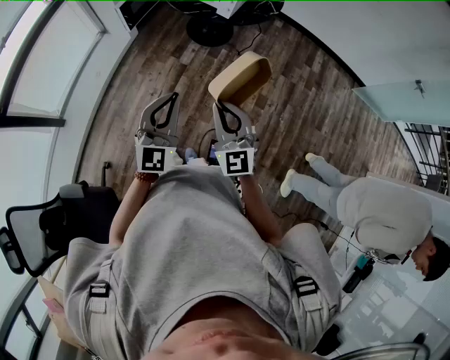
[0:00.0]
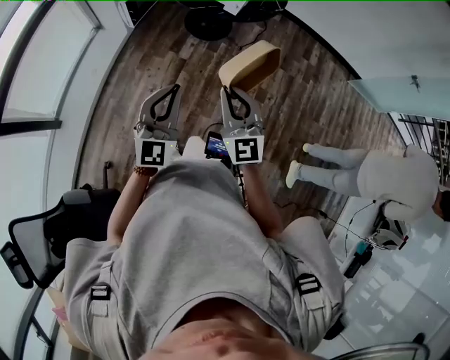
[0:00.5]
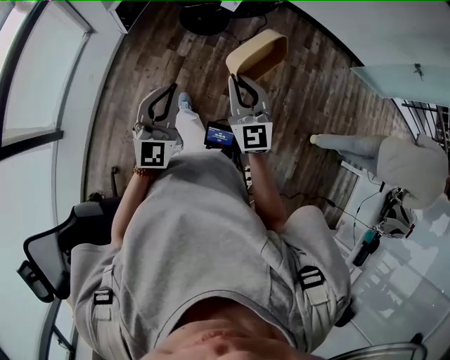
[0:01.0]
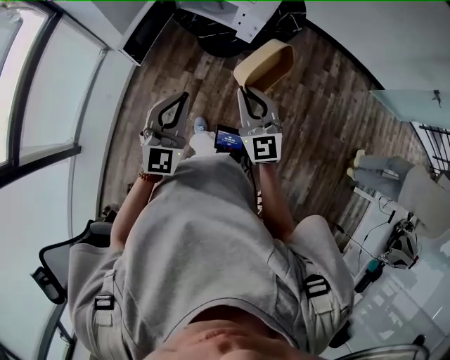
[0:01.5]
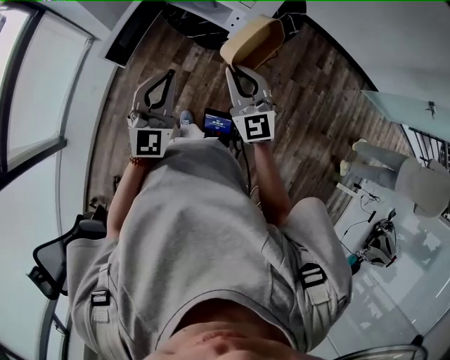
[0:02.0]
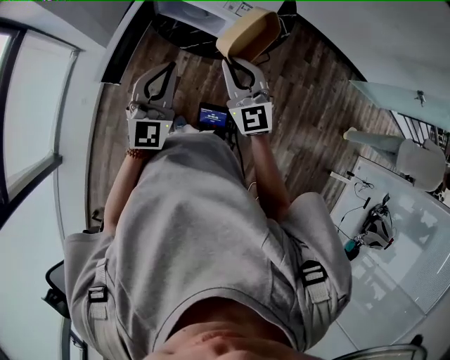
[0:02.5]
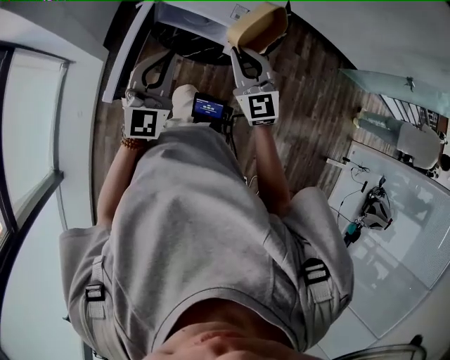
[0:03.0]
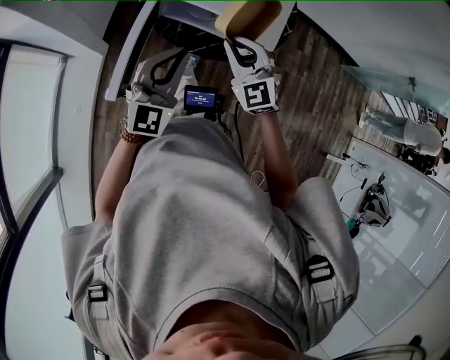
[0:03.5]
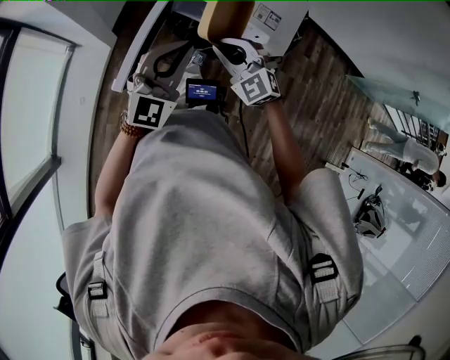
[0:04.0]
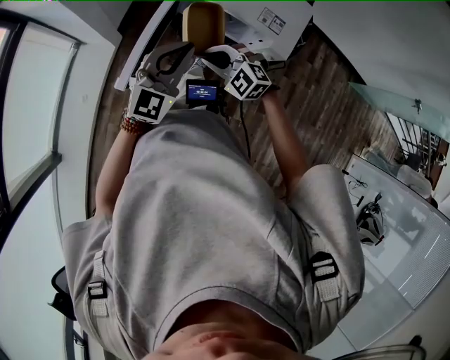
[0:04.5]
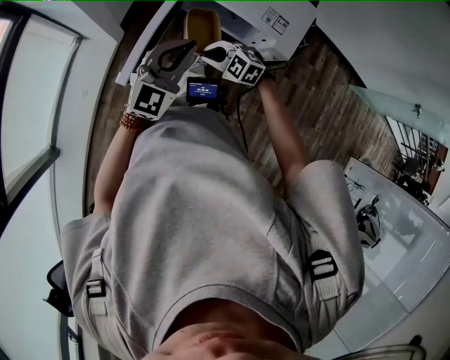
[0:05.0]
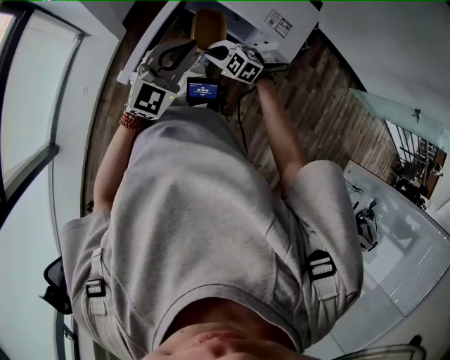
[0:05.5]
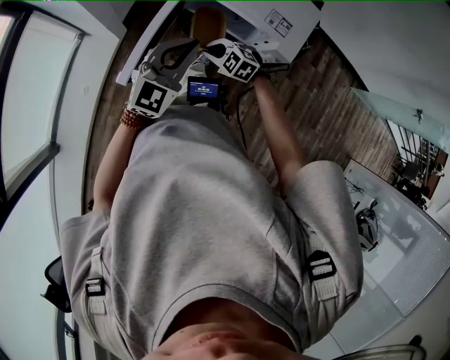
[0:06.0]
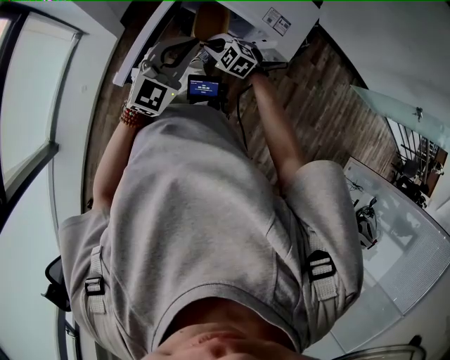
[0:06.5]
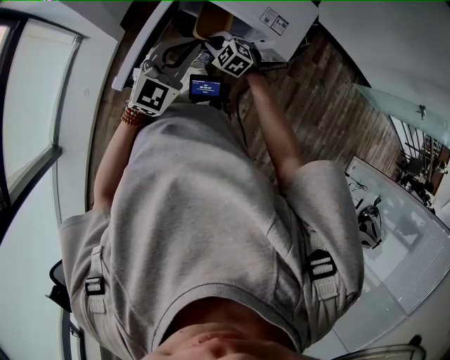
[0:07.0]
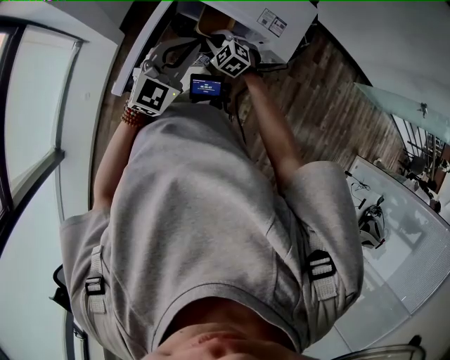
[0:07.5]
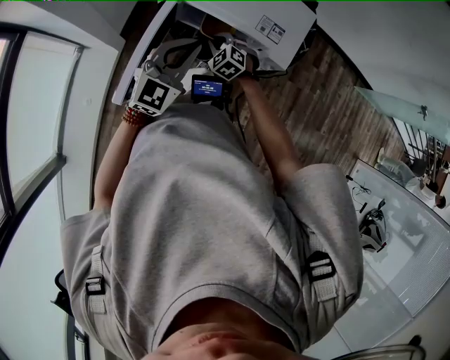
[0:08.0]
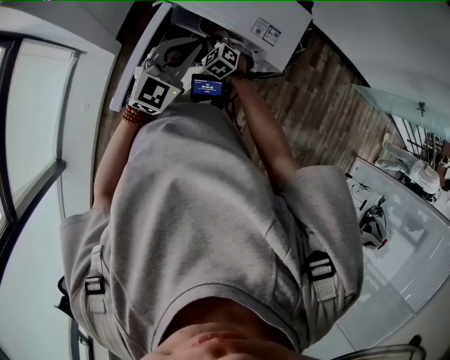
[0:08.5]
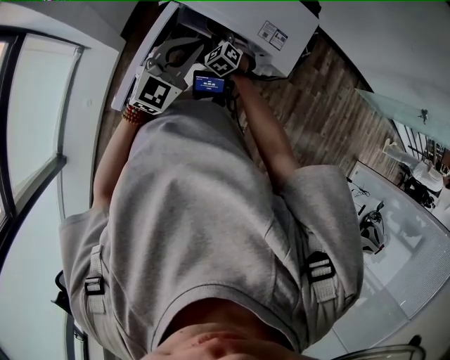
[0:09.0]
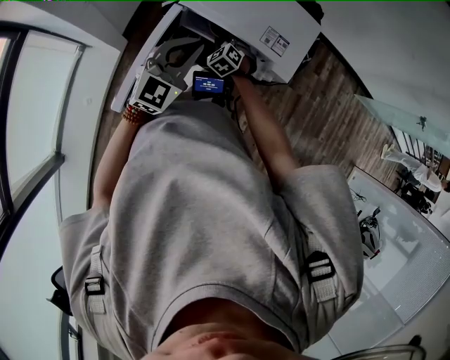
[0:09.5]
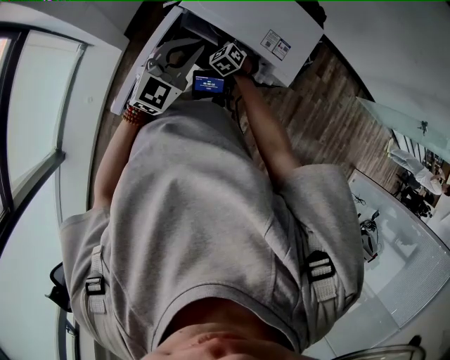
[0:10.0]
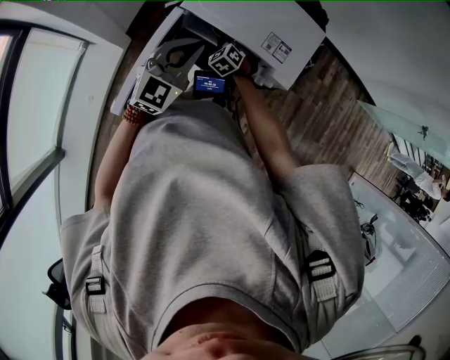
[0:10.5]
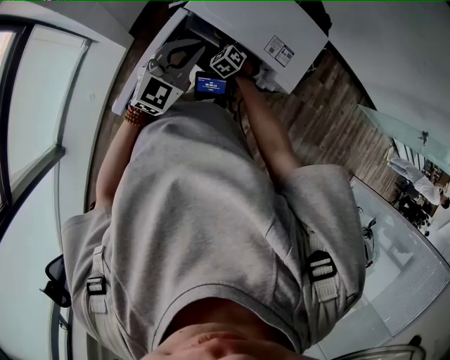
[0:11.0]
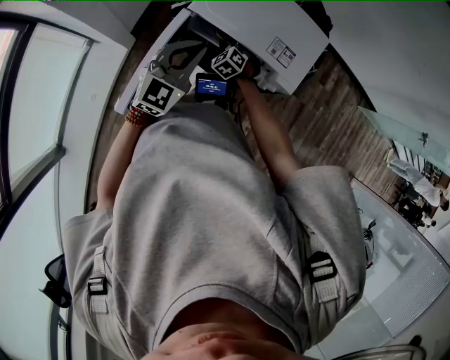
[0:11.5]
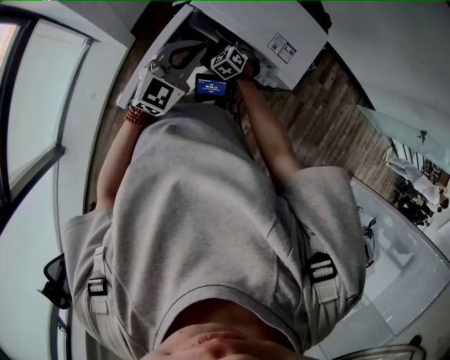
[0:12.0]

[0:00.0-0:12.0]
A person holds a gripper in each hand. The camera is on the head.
0.0 to 2.0 s: The grippers both shift forward by approximately 40 cm.
2.0 to 4.0 s: The left gripper is displaced forward and to the left by some 20 cm, while the right gripper heads forward, to the left and downward, covering approximately 25 cm, and swivels approximately 30 degrees.
4.0 to 6.0 s: The left gripper ends up about 5 cm from where it was. The right gripper shifts roughly 15 cm downward, and turns by about 30 degrees.
6.0 to 8.0 s: The right gripper shifts approximately 10 cm forward, and turns by approximately 30 degrees; the left gripper shifts by approximately 5 cm.
8.0 to 10.0 s: The right gripper is displaced forward and downward by about 10 cm.
10.0 to 12.0 s: The grippers make only small movements.

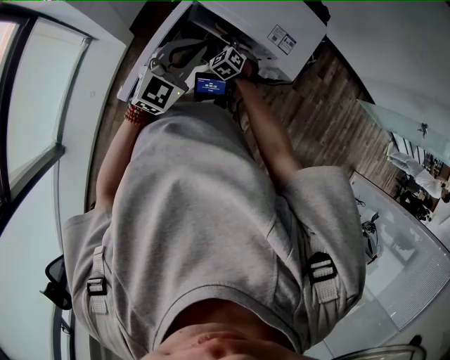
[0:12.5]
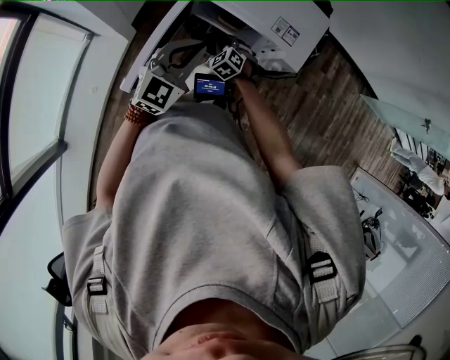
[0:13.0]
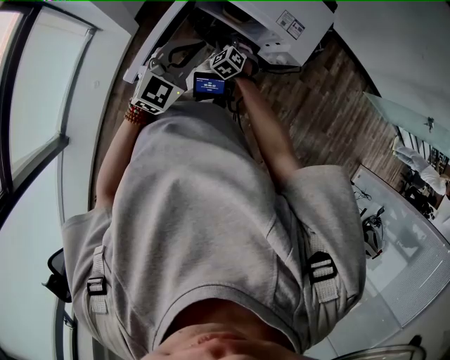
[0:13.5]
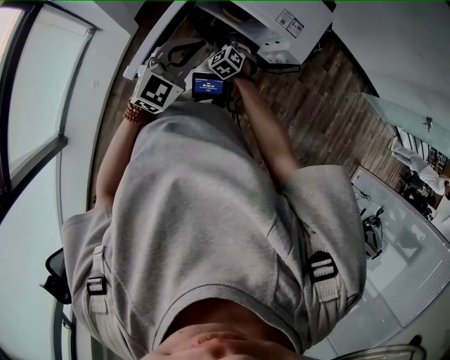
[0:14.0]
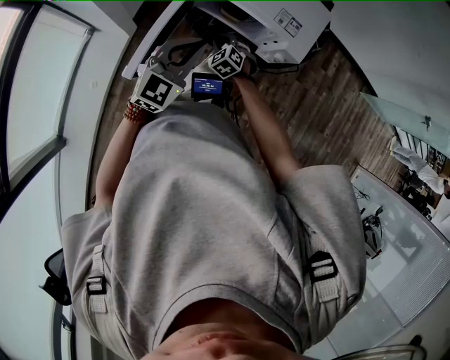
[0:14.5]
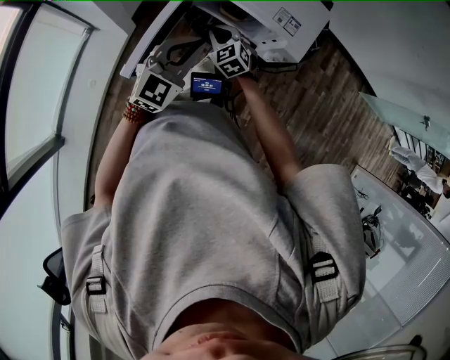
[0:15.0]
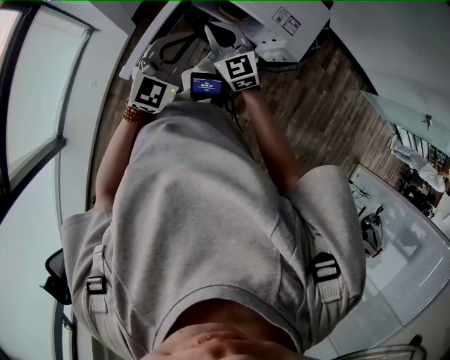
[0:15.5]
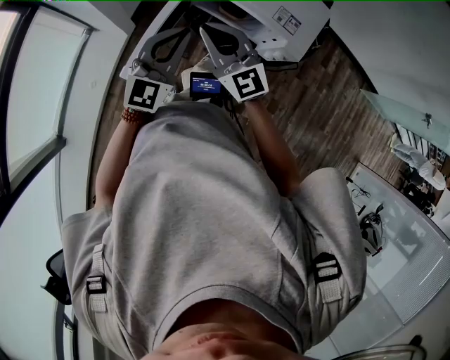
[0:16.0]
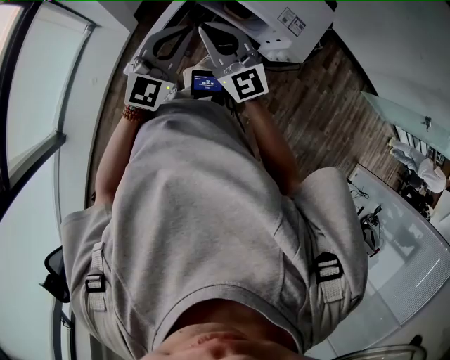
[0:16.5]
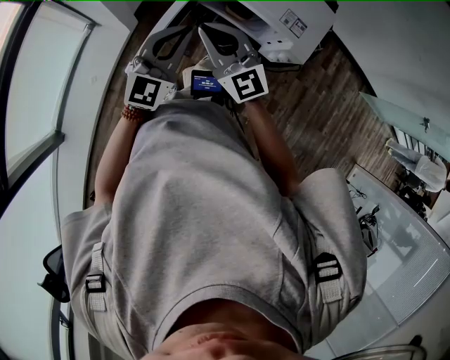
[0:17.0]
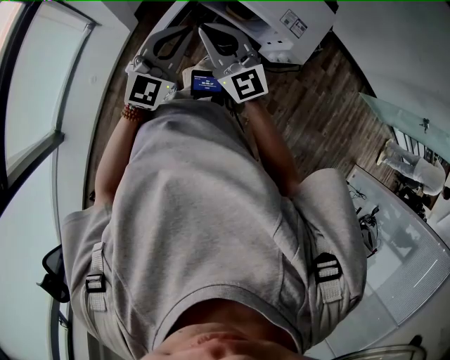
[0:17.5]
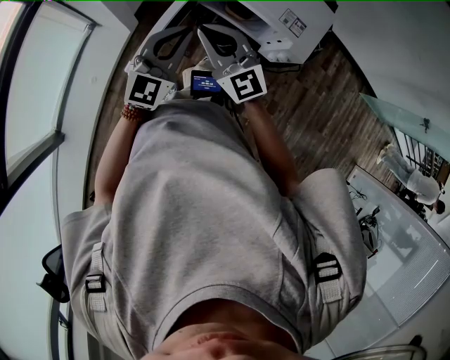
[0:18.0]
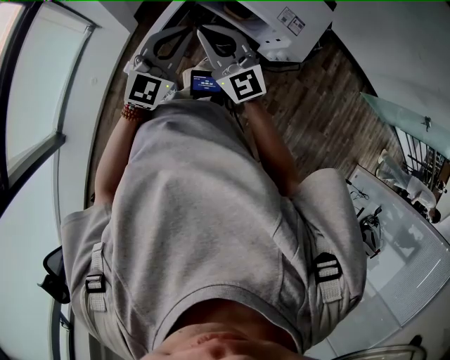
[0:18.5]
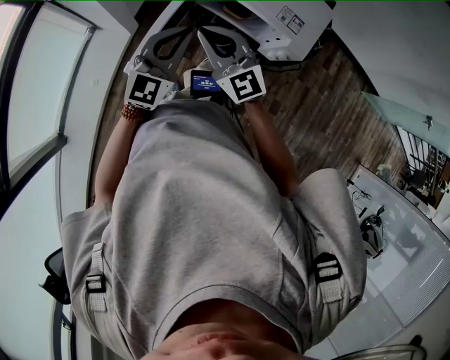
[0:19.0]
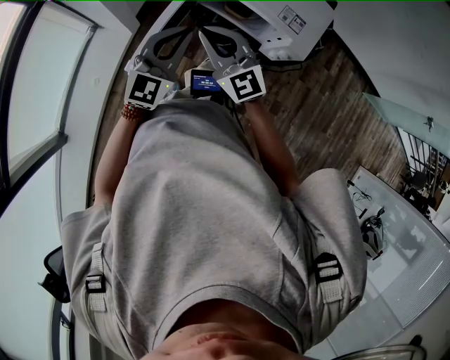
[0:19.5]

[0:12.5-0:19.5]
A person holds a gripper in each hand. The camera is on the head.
12.5 to 14.5 s: The grippers both shift backward by approximately 5 cm.
14.5 to 16.0 s: The right gripper heads upward, covering approximately 30 cm, and tilts its fingers some 40 degrees upward; the left gripper ends up some 5 cm from where it was.
16.0 to 19.5 s: The grippers stay close to where they were, moving slightly.

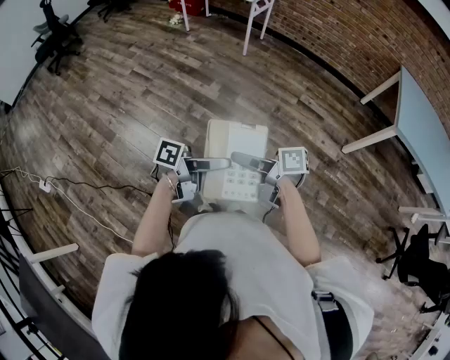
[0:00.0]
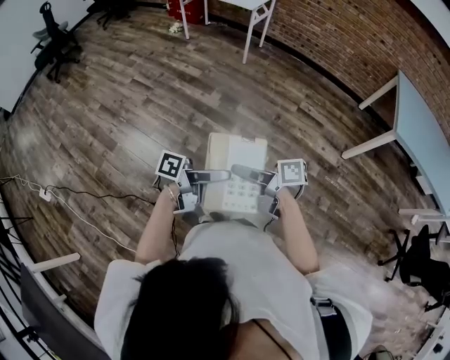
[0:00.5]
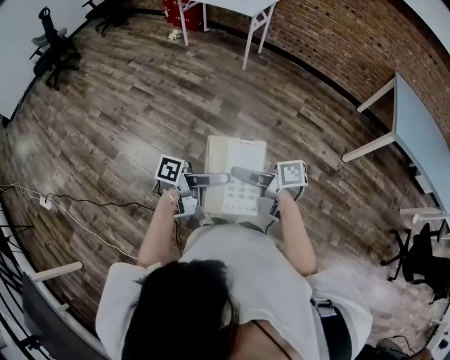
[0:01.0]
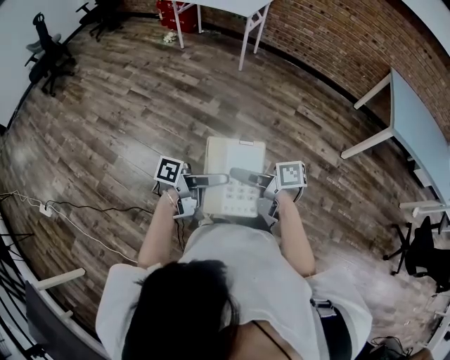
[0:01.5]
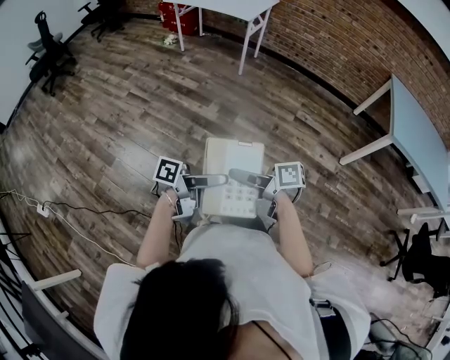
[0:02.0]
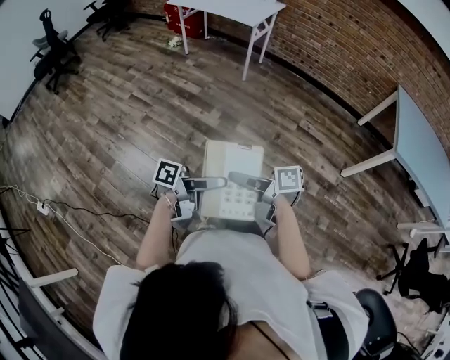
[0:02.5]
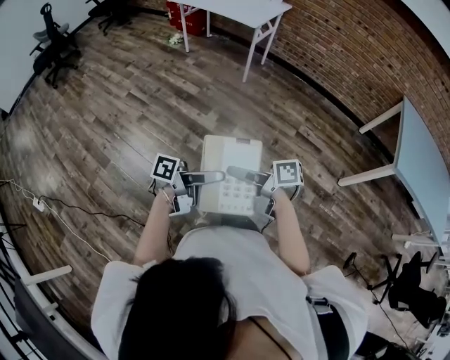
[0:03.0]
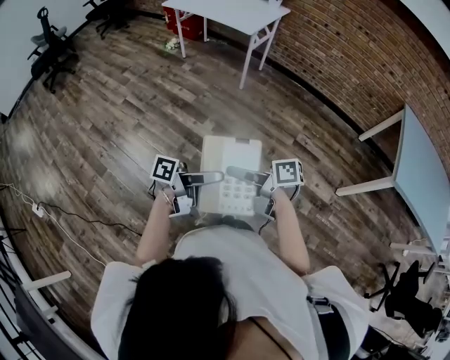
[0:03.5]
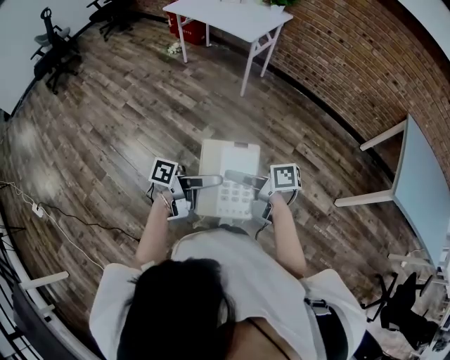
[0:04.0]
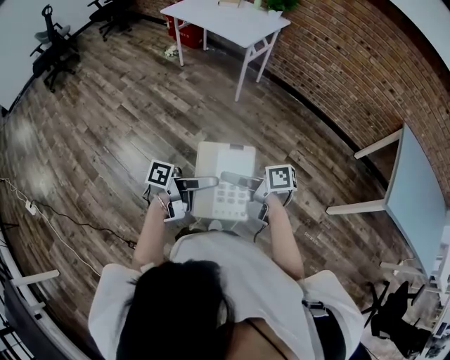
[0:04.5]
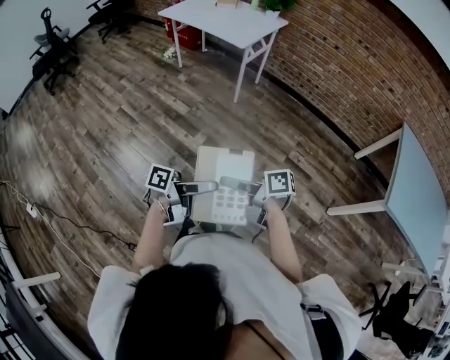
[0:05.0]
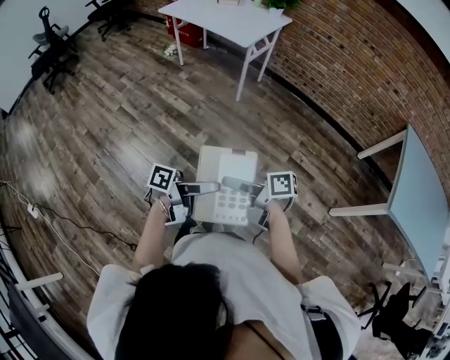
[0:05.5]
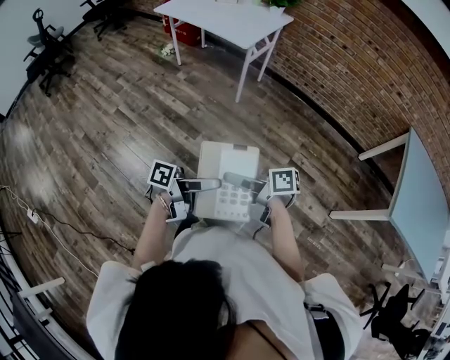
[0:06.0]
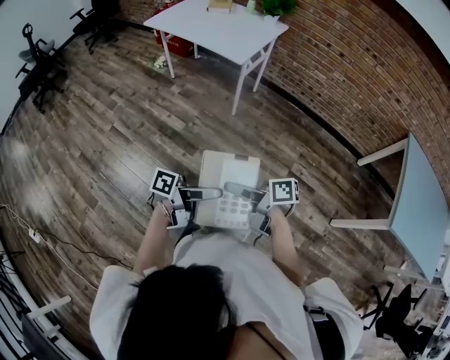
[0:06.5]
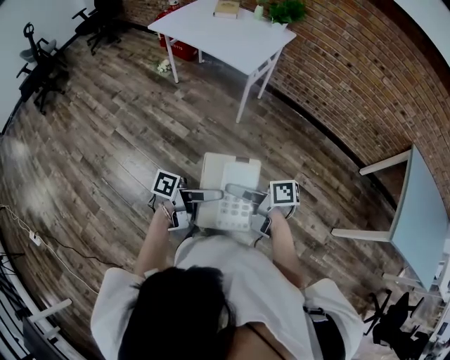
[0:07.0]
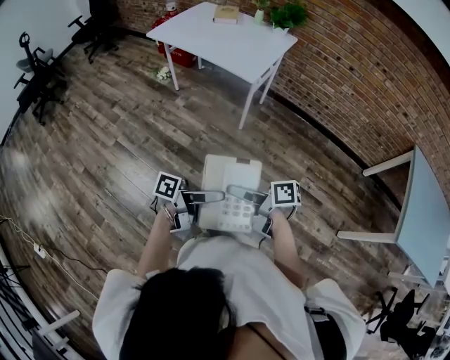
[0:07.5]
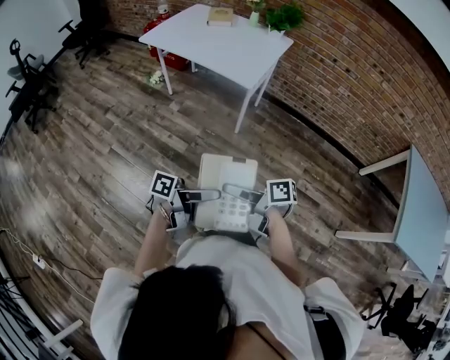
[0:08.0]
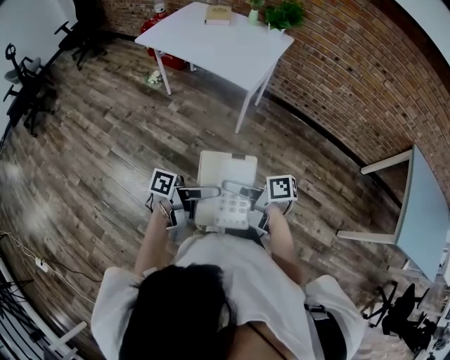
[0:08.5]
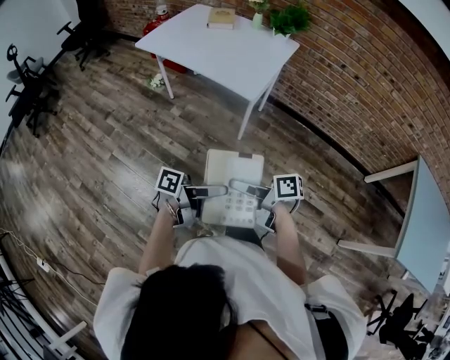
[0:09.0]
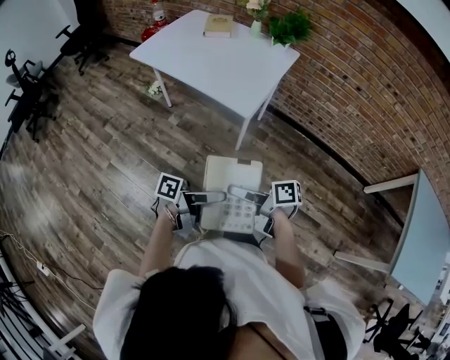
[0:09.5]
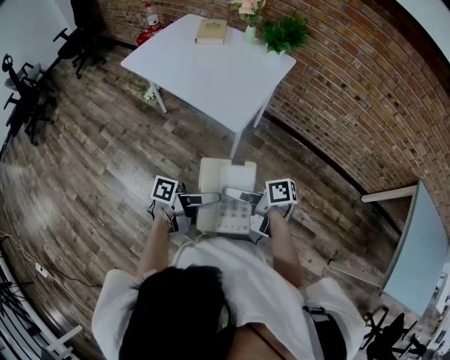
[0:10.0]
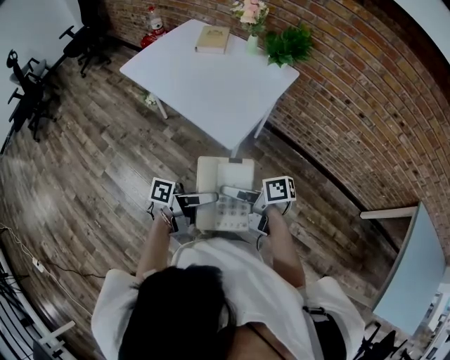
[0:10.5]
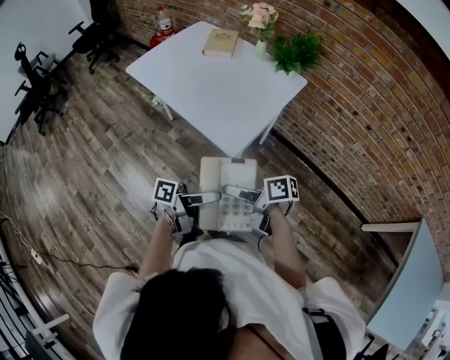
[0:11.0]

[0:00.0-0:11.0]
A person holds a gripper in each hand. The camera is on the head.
0.0 to 2.0 s: The right gripper ends up some 5 cm from where it was.
2.0 to 3.5 s: The right gripper changes place by some 25 cm.
3.5 to 5.5 s: The right gripper ends up some 10 cm from where it was.
5.5 to 7.5 s: The right gripper moves approximately 25 cm.
7.5 to 9.0 s: The right gripper shifts by approximately 15 cm.
9.0 to 11.0 s: The right gripper ends up some 25 cm from where it was.
